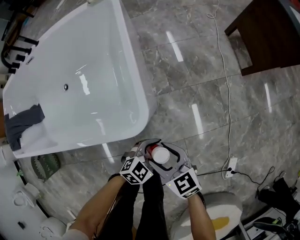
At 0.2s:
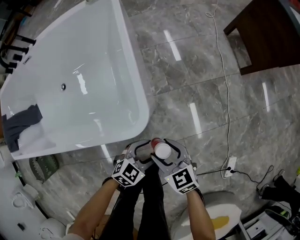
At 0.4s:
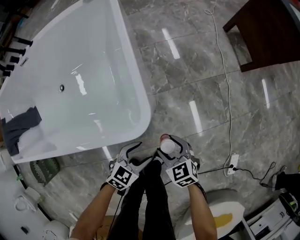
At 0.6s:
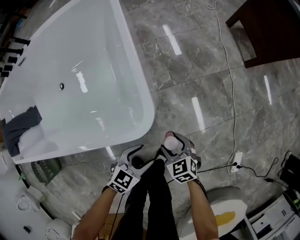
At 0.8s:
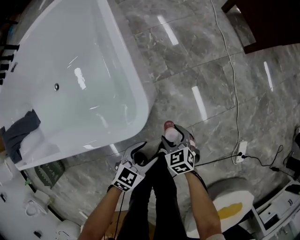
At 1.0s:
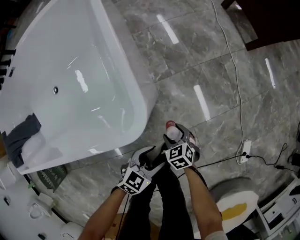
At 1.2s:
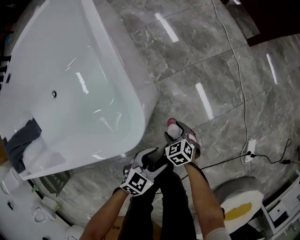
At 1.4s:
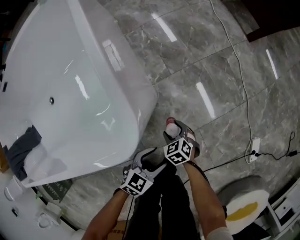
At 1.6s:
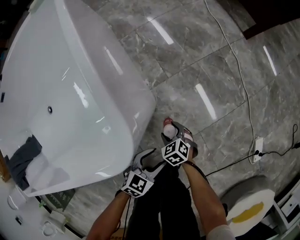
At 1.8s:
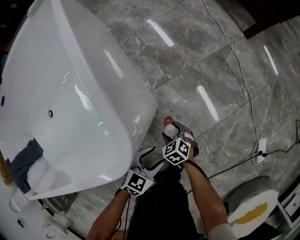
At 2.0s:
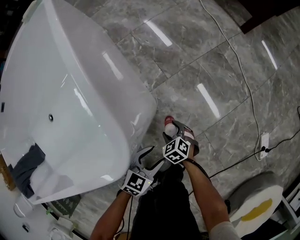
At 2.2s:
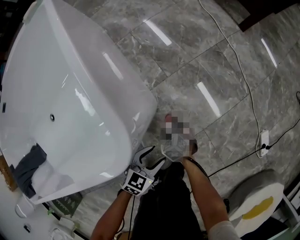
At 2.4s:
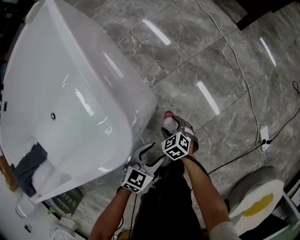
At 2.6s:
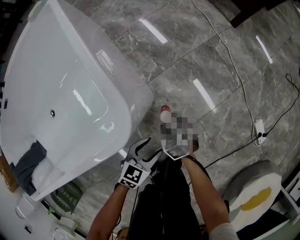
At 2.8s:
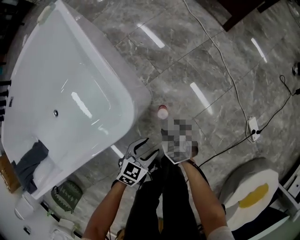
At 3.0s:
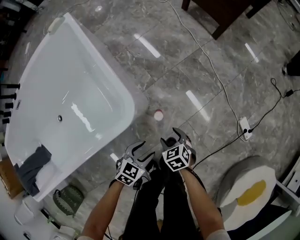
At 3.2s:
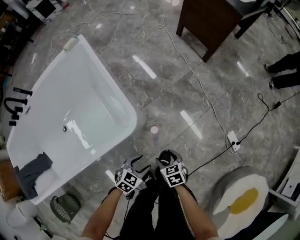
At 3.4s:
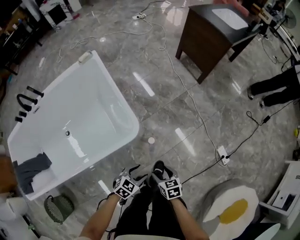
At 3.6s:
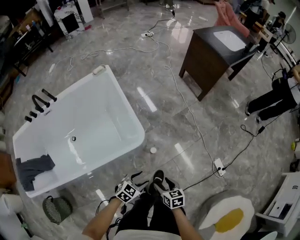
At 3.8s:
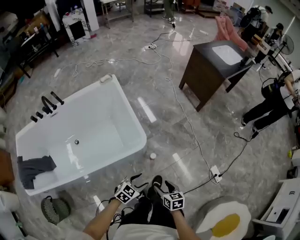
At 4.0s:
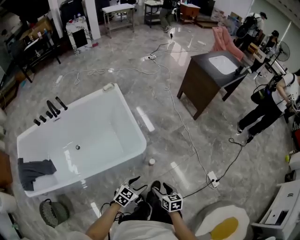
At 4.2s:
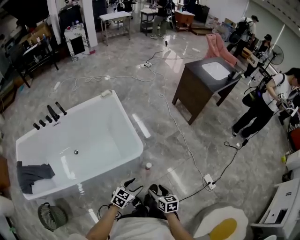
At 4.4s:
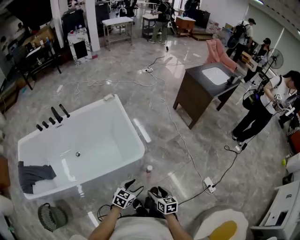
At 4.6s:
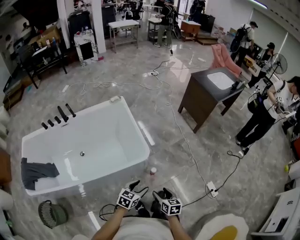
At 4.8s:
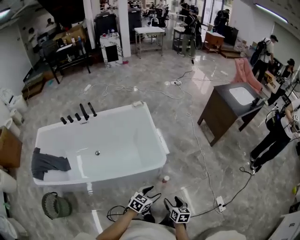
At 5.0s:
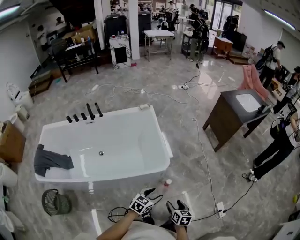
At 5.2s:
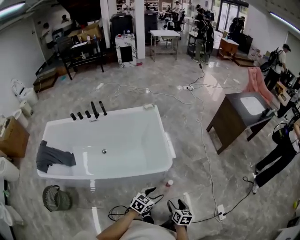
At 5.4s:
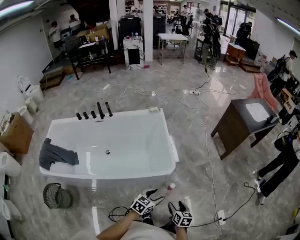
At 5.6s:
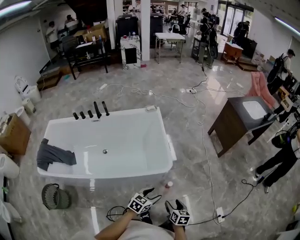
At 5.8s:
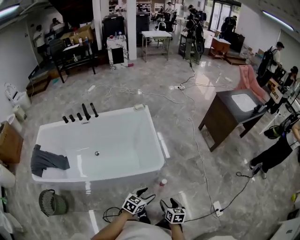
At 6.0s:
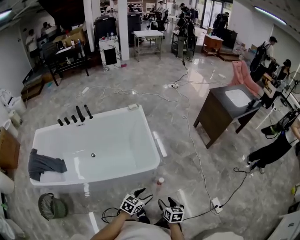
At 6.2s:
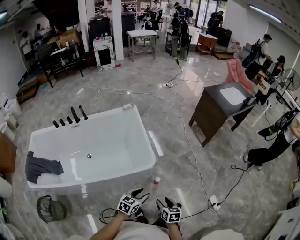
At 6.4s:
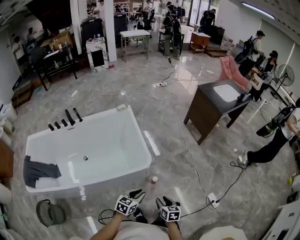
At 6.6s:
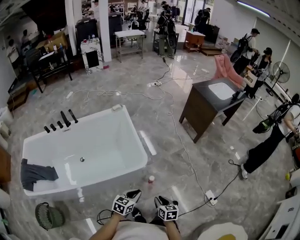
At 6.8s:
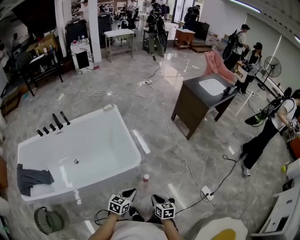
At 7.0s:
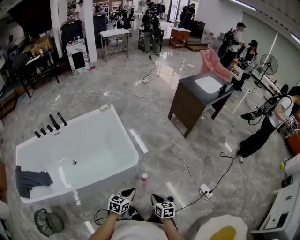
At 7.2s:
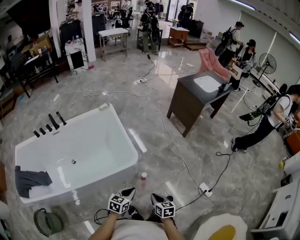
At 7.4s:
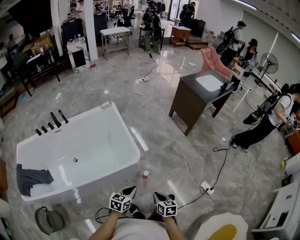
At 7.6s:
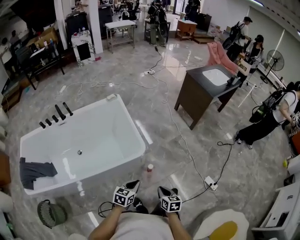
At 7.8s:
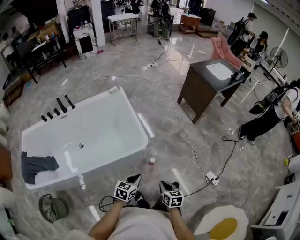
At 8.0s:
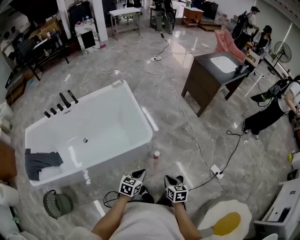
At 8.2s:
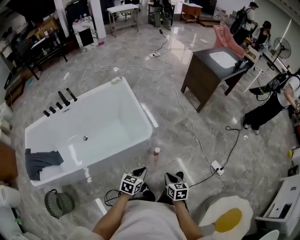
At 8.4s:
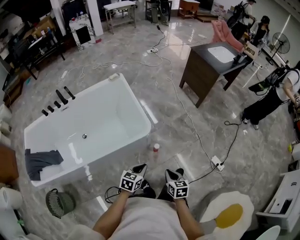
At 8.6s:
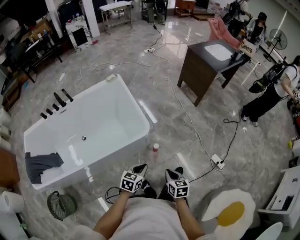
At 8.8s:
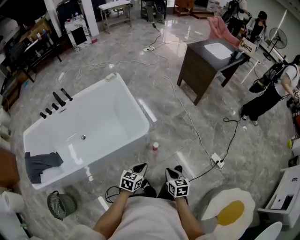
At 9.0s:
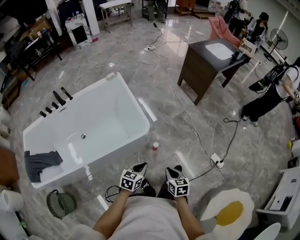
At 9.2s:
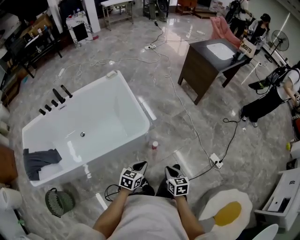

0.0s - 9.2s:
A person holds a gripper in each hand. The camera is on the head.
0.0s - 1.6s: The right gripper is displaced downward by roughly 40 cm, and points its fingers about 30 degrees further downward, while the left gripper heads downward, covering roughly 20 cm.
1.6s - 3.0s: The left gripper shifts some 15 cm upward. Meanwhile the right gripper moves upward, roughly 20 cm.
3.0s - 4.6s: The left gripper goes roughly 40 cm upward, and turns by about 20 degrees, while the right gripper shifts approximately 50 cm upward and backward, and changes its angle by some 30 degrees.
4.6s - 6.2s: The grippers move only a little.
6.2s - 7.6s: The right gripper closes its fingers, while the left gripper closes its fingers.
7.6s - 9.2s: There are only small adjustments of the grippers.

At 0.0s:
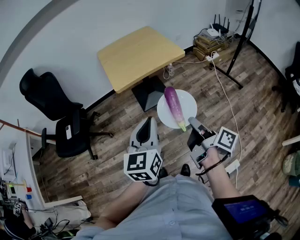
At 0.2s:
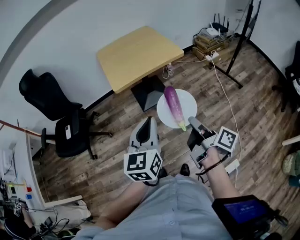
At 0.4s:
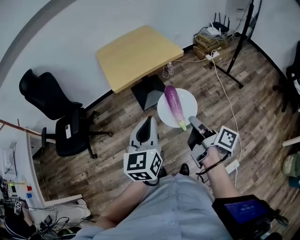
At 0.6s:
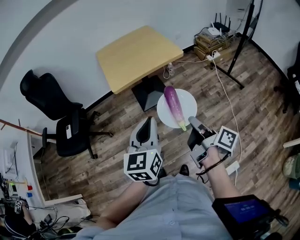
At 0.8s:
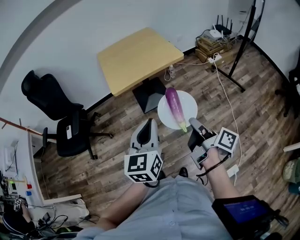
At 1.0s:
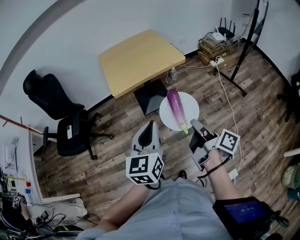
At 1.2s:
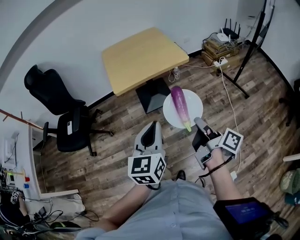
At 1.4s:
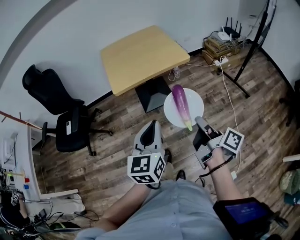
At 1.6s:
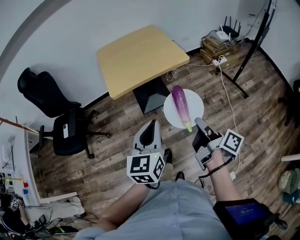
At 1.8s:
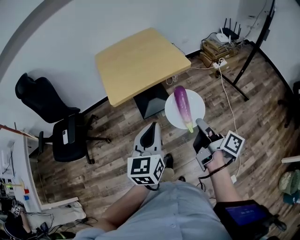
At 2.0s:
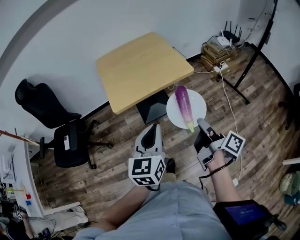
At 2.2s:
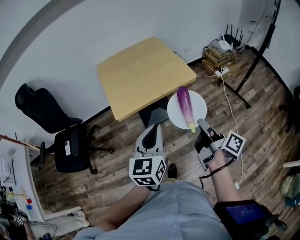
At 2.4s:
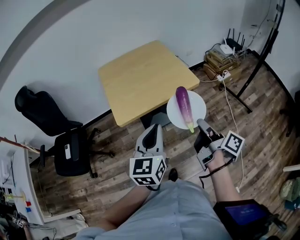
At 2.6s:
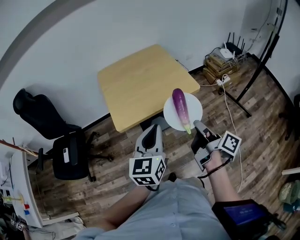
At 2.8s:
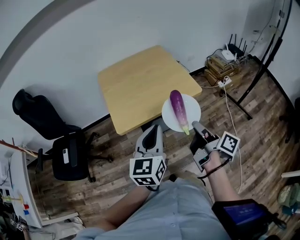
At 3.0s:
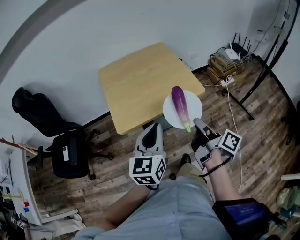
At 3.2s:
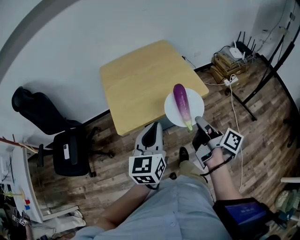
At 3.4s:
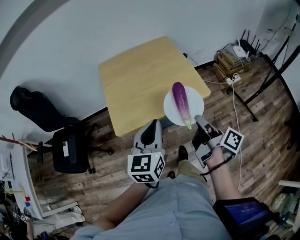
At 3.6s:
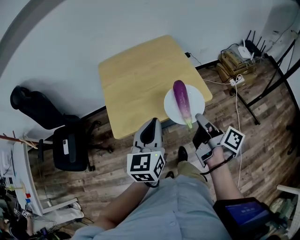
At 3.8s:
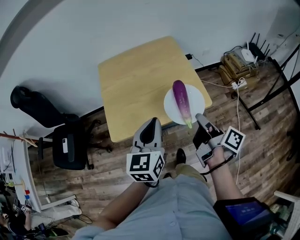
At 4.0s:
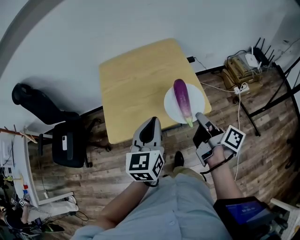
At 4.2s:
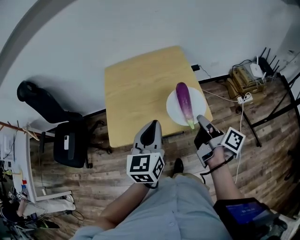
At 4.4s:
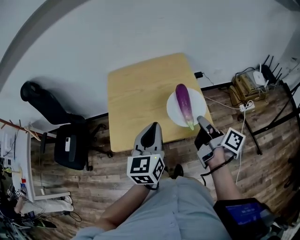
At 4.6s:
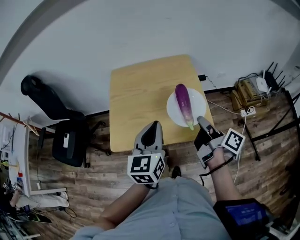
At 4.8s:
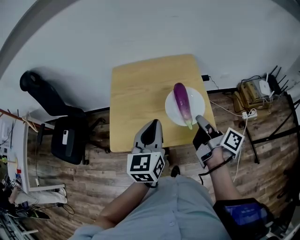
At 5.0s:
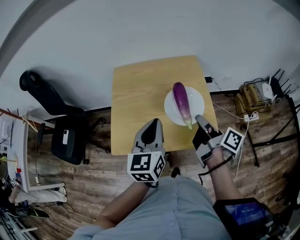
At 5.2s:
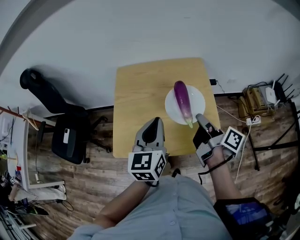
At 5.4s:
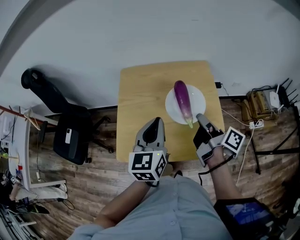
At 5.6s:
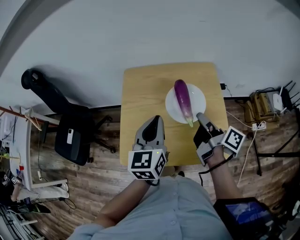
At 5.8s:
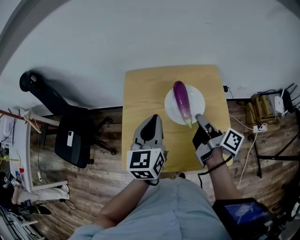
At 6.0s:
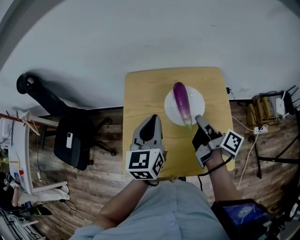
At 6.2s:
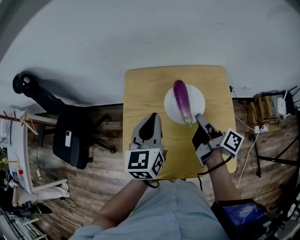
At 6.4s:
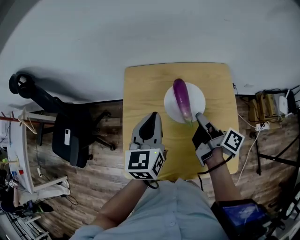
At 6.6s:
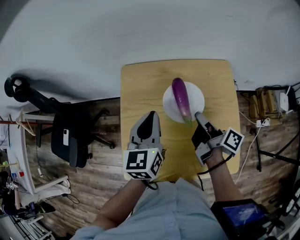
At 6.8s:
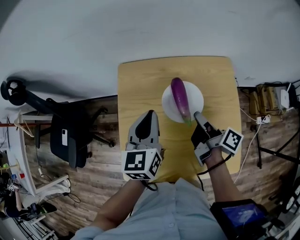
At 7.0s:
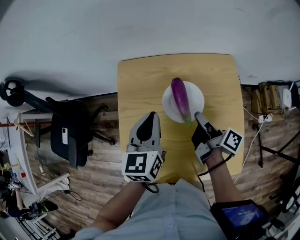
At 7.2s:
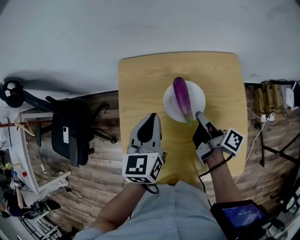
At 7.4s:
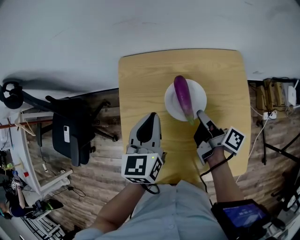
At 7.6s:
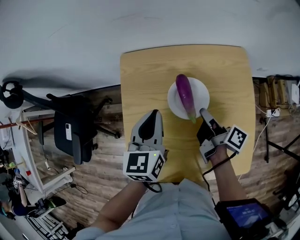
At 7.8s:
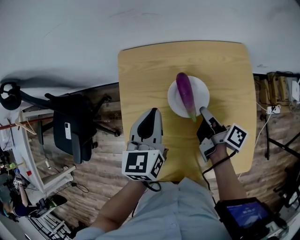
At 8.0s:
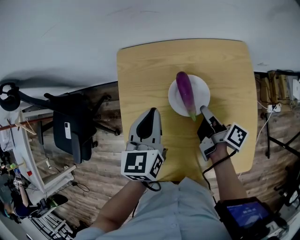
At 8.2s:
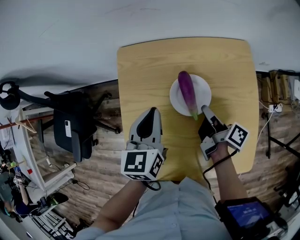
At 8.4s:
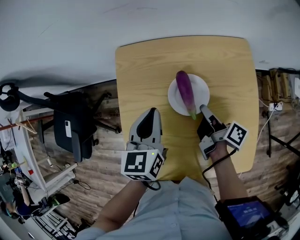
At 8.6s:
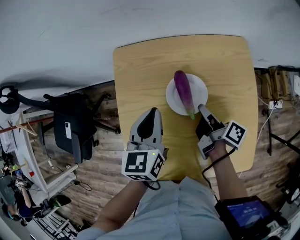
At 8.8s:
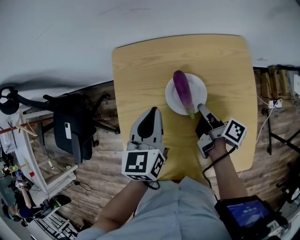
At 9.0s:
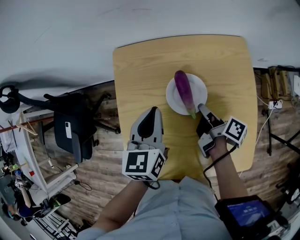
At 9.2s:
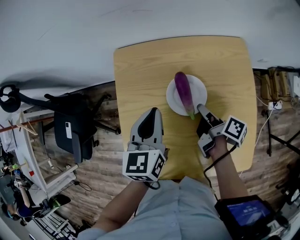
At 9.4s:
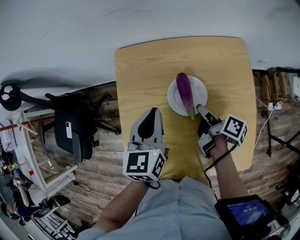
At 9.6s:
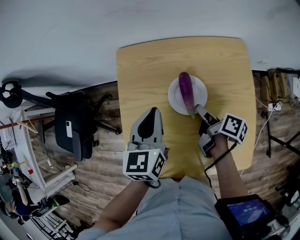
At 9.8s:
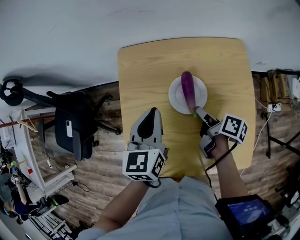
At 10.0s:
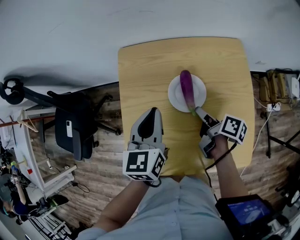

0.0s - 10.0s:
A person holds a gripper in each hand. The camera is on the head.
0.0s - 1.4s: The left gripper moves roughly 10 cm.
1.4s - 2.8s: The left gripper changes place by approximately 25 cm.
2.8s - 4.2s: The left gripper changes place by some 20 cm.
4.2s - 5.8s: The left gripper shifts by some 25 cm.
5.8s - 7.2s: The left gripper travels downward by roughly 10 cm.

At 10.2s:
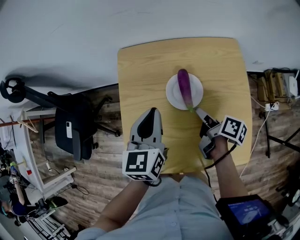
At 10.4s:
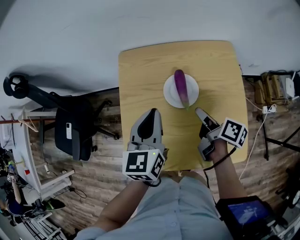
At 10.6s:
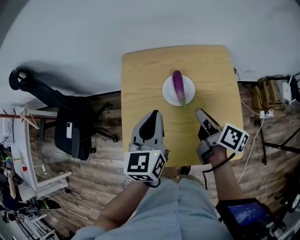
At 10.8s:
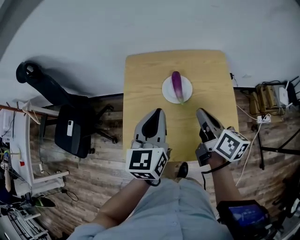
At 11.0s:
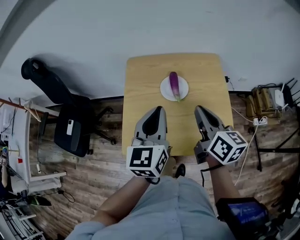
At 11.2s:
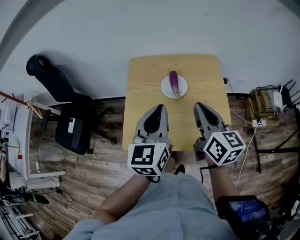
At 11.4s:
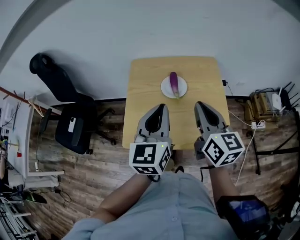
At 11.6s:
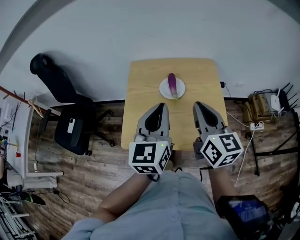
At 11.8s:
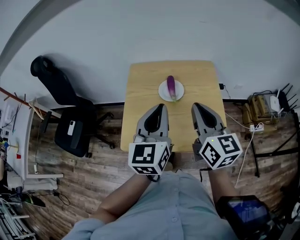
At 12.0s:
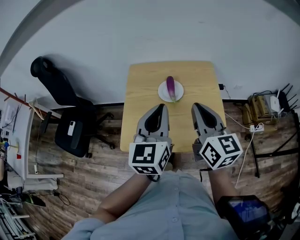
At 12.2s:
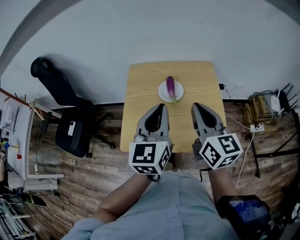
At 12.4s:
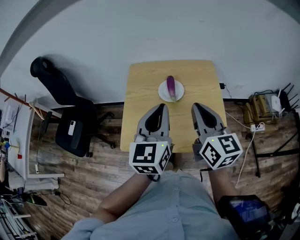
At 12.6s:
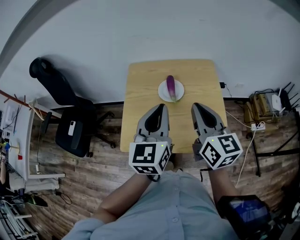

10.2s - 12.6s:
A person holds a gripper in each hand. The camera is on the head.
10.2s - 11.4s: The left gripper ends up roughly 25 cm from where it was.

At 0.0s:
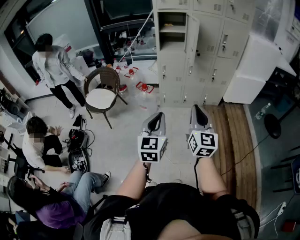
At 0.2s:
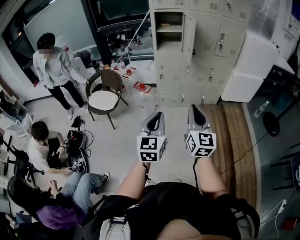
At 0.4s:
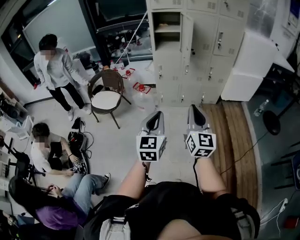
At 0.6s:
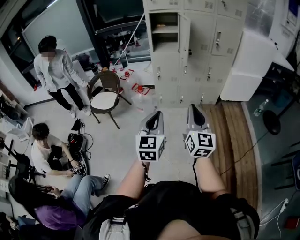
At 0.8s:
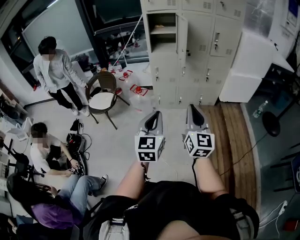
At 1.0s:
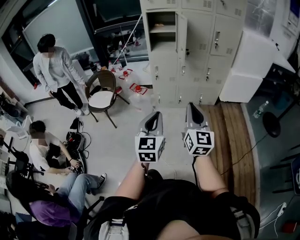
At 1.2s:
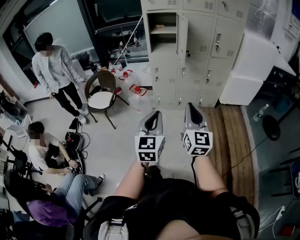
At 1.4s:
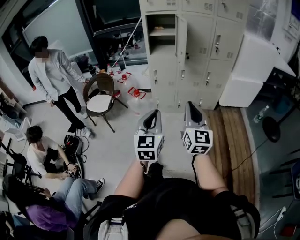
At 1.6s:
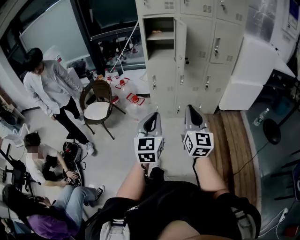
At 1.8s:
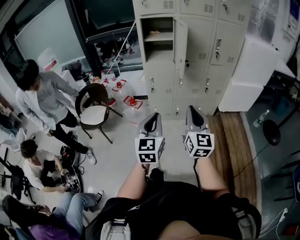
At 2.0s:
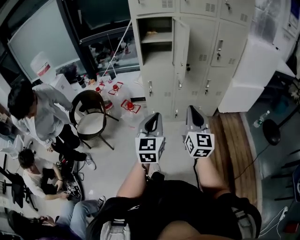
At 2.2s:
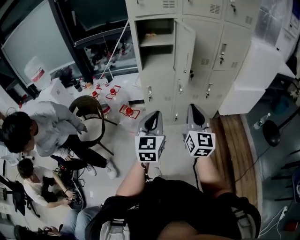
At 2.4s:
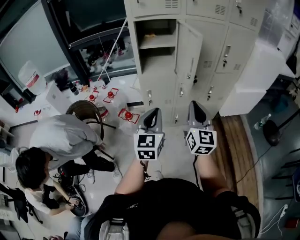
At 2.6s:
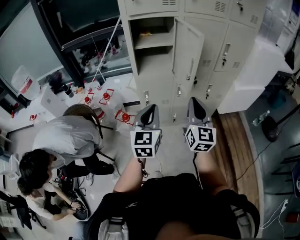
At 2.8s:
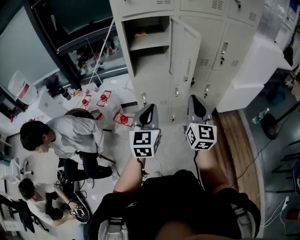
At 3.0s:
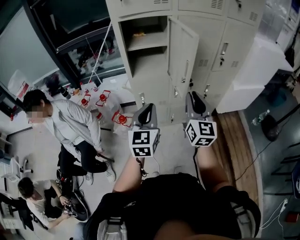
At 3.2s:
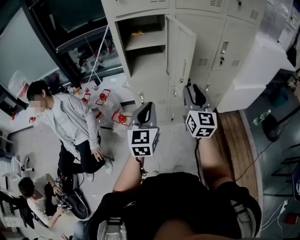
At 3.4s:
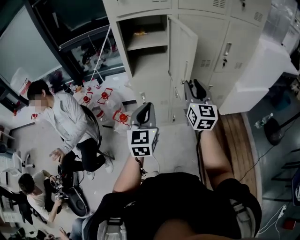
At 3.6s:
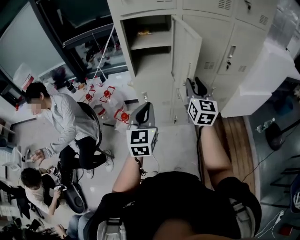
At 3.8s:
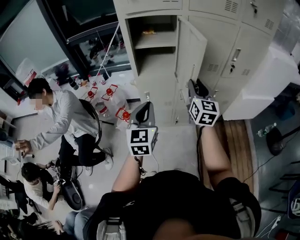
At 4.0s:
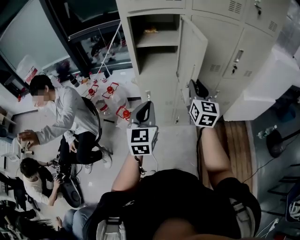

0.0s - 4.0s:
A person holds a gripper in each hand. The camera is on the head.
0.0s - 1.4s: The left gripper heads forward and to the right, covering some 10 cm, while the right gripper moves forward, some 5 cm.
1.4s - 2.6s: Both grippers move forward, about 35 cm.
2.6s - 4.0s: The right gripper shifts some 15 cm forward, and opens up. Meanwhile the left gripper is displaced forward by some 5 cm.
